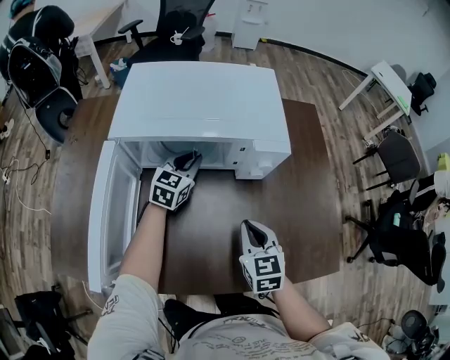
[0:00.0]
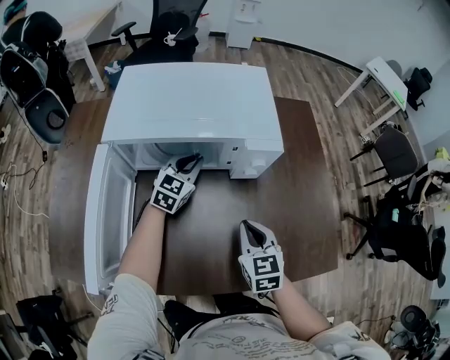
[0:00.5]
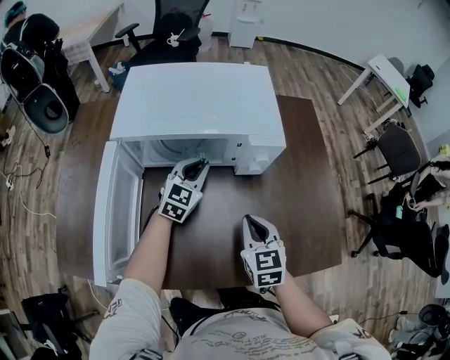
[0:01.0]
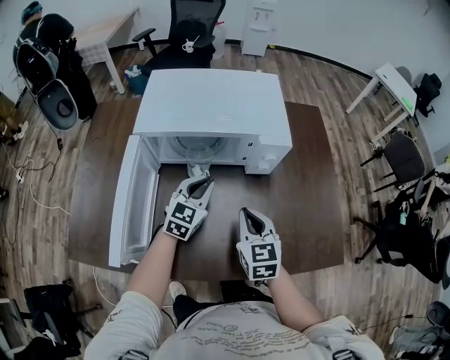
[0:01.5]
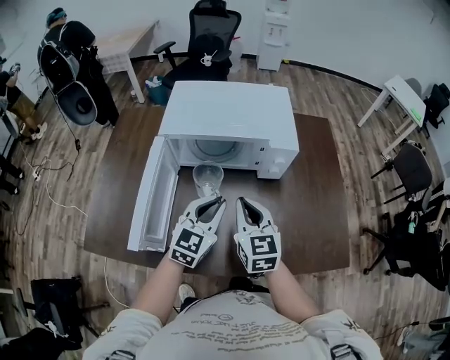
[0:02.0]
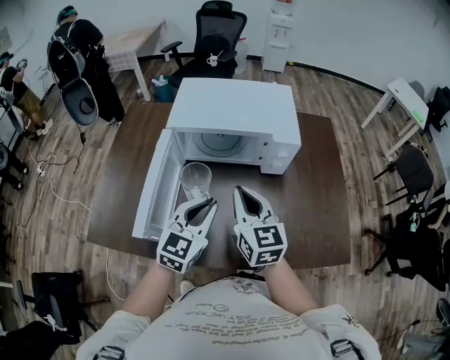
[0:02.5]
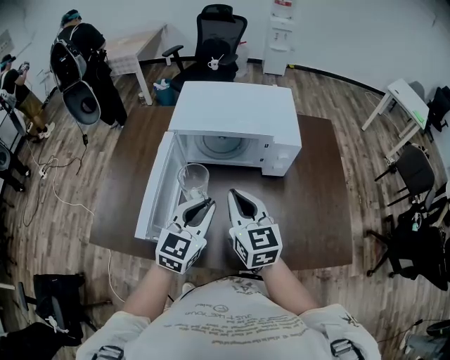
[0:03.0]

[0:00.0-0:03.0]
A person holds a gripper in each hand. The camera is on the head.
0:00.0 to 0:01.5: The left gripper heads backward, covering about 10 cm. Meanwhile the right gripper changes place by about 5 cm.
0:01.5 to 0:03.0: The left gripper moves backward and upward, approximately 20 cm; the right gripper shifts some 15 cm upward and to the left, and changes its angle by about 20 degrees.

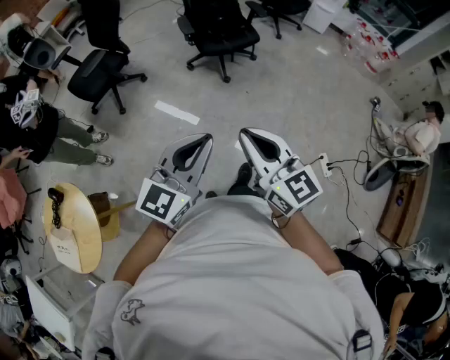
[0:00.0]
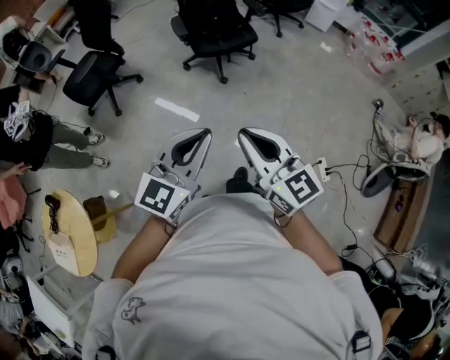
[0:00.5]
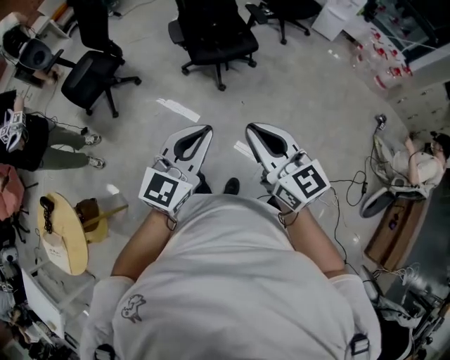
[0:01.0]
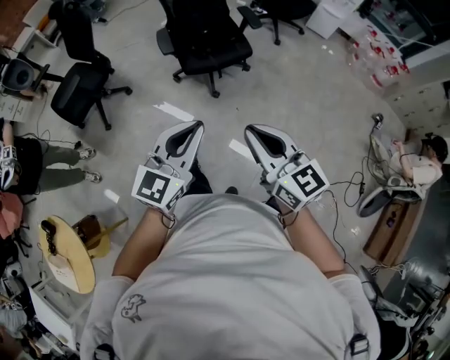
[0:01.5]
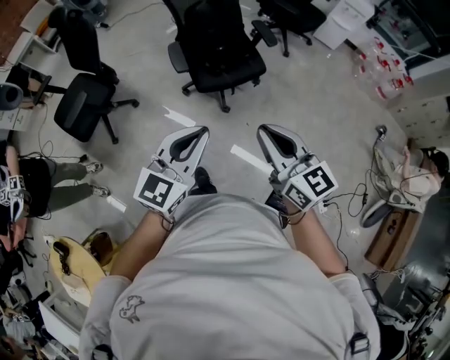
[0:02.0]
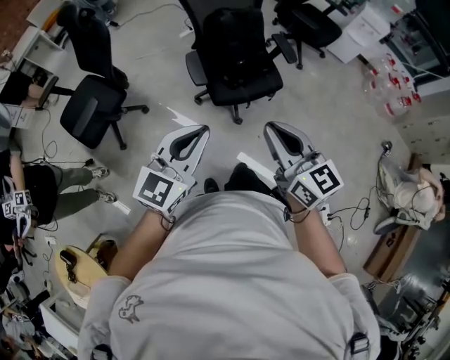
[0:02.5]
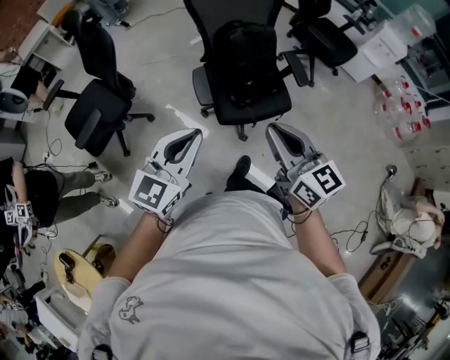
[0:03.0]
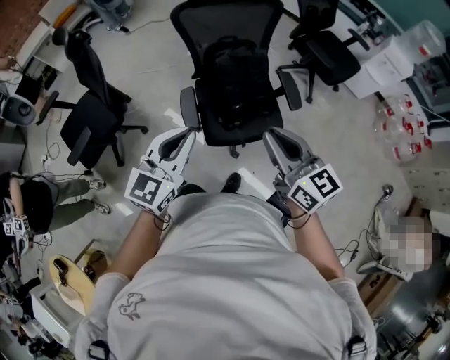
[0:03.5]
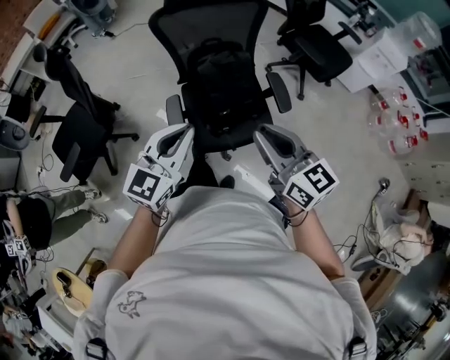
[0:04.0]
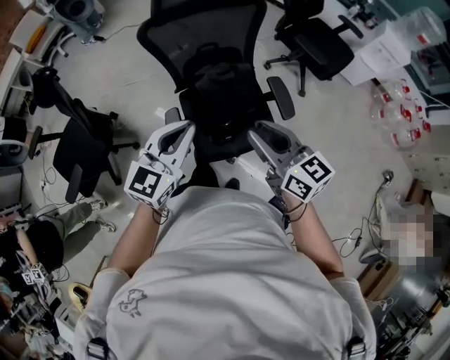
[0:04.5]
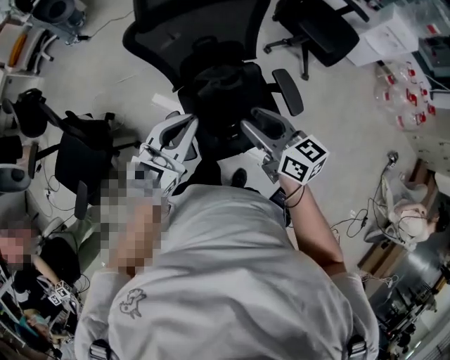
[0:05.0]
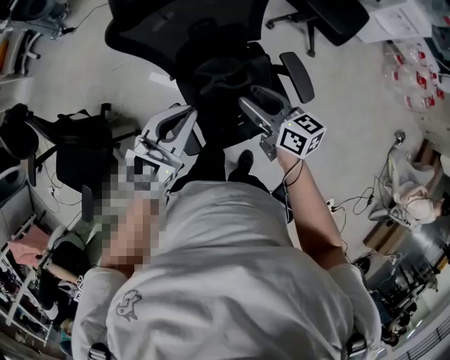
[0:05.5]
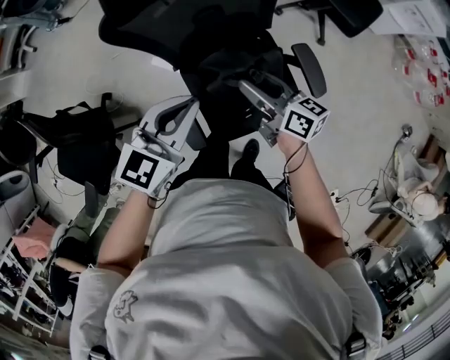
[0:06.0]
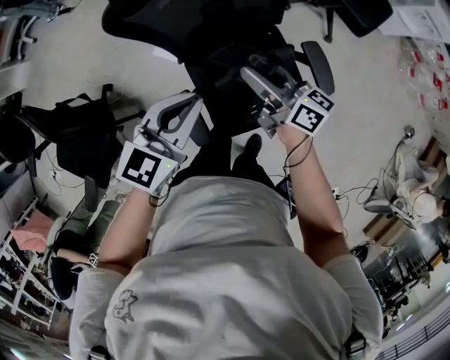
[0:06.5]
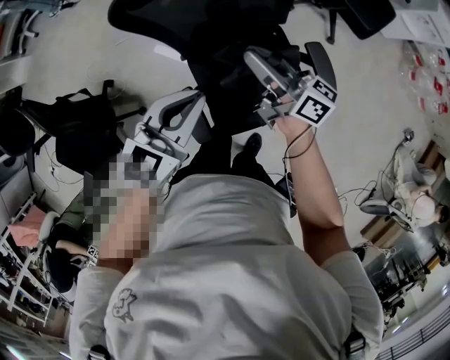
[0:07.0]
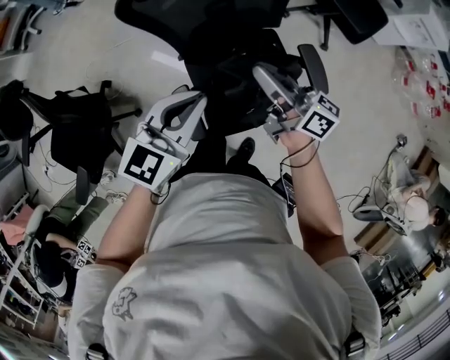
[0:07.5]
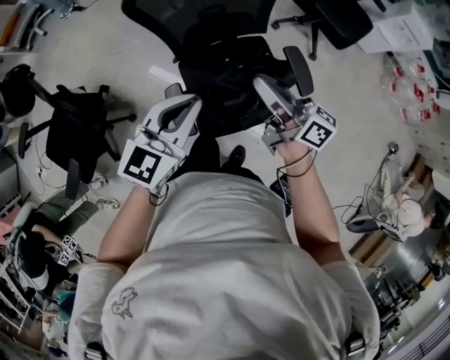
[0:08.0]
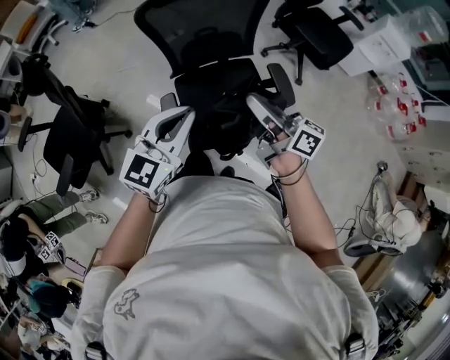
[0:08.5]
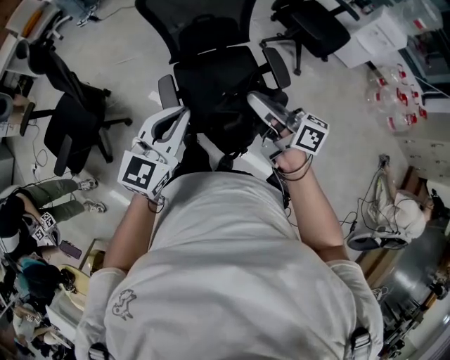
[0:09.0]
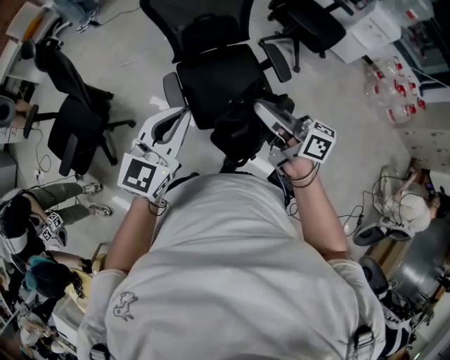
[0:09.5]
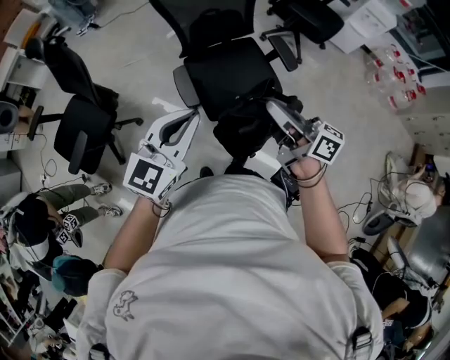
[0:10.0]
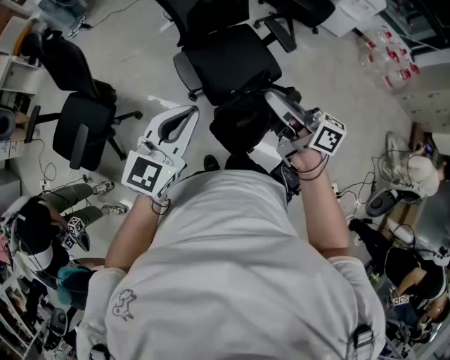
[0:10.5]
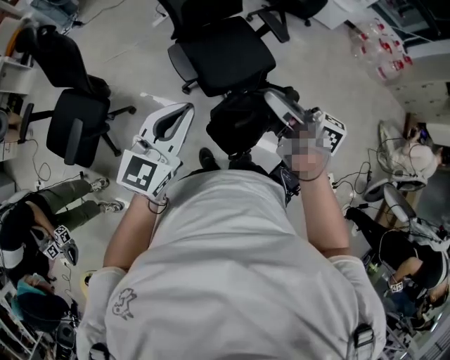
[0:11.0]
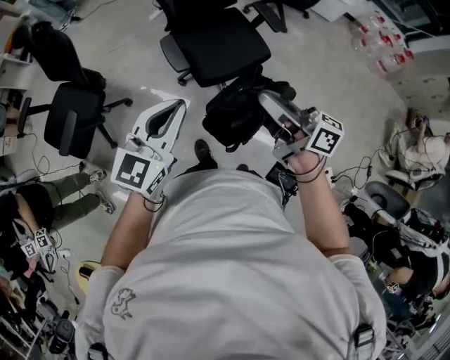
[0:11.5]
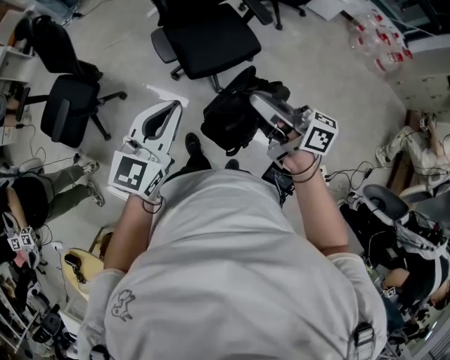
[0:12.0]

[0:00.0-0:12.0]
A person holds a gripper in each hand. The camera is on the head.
0:00.0 to 0:02.0: The two grippers travel together, forward, about 40 cm.
0:02.0 to 0:04.0: Both grippers are carried forward, roughly 40 cm.
0:04.0 to 0:06.0: Both grippers move forward and downward, roughly 35 cm. The right gripper changes its angle by approximately 30 degrees, and opens. Meanwhile the left gripper changes its angle by roughly 20 degrees.
0:06.0 to 0:08.0: The right gripper heads upward and backward, covering about 15 cm, turns by roughly 20 degrees, and closes; the left gripper moves backward, approximately 10 cm.
0:08.0 to 0:10.0: Both grippers travel together backward, roughly 30 cm.
0:10.0 to 0:12.0: The two grippers go approximately 20 cm backward.

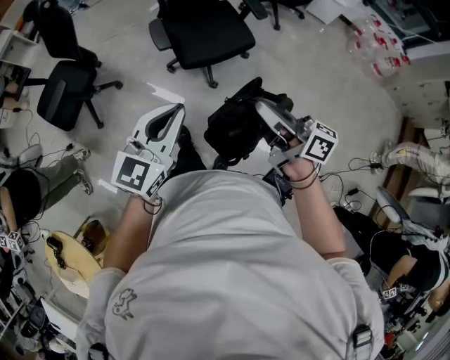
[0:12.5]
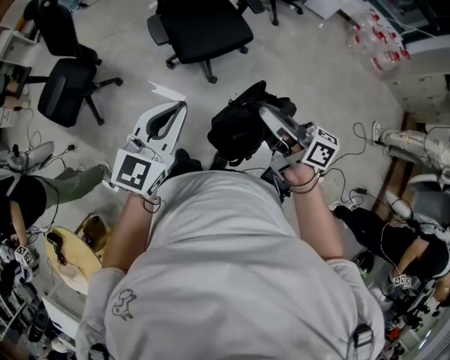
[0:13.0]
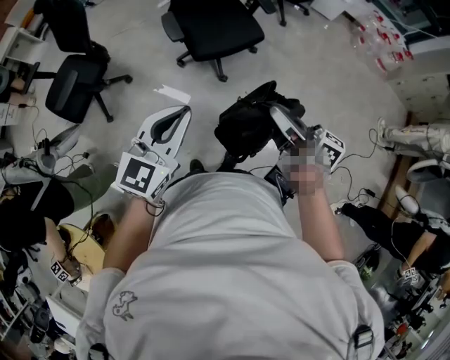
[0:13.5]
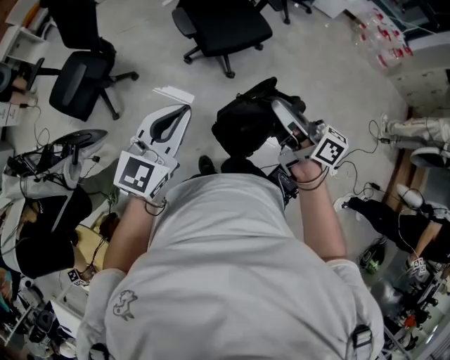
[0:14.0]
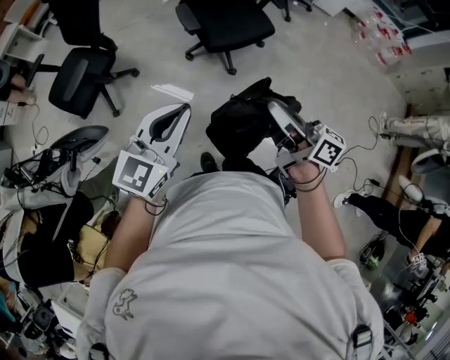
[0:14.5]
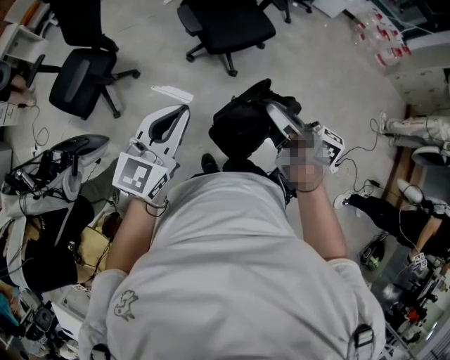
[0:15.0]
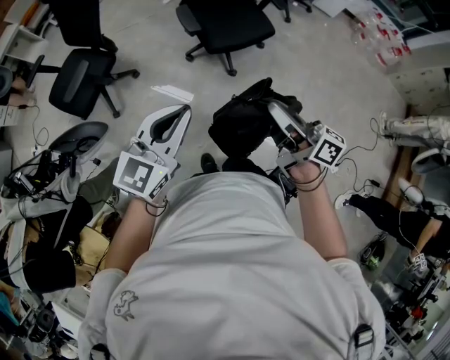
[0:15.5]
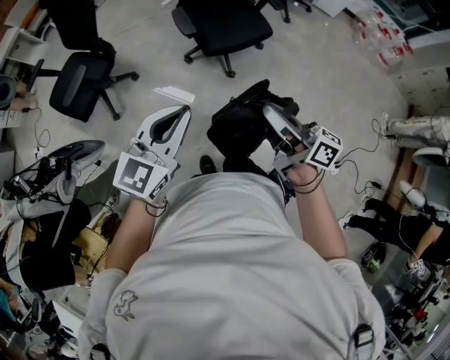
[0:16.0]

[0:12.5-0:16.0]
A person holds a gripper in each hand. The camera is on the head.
0:12.5 to 0:14.5: Both grippers travel together to the left and backward, approximately 20 cm.
0:14.5 to 0:16.0: There are only small adjustments of the grippers.

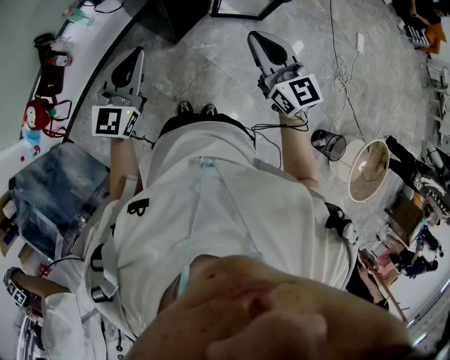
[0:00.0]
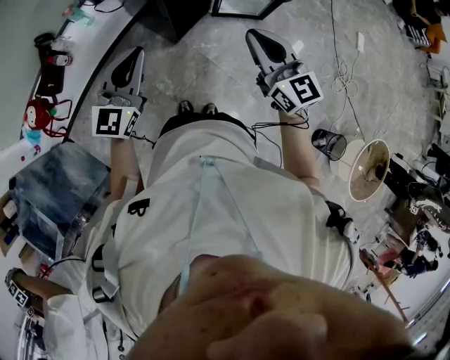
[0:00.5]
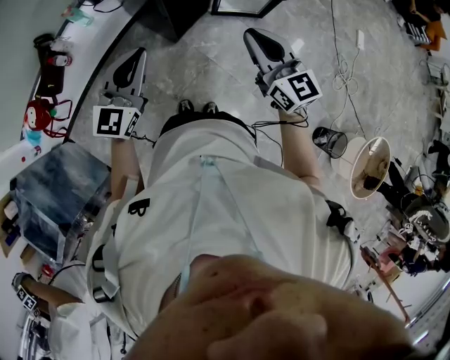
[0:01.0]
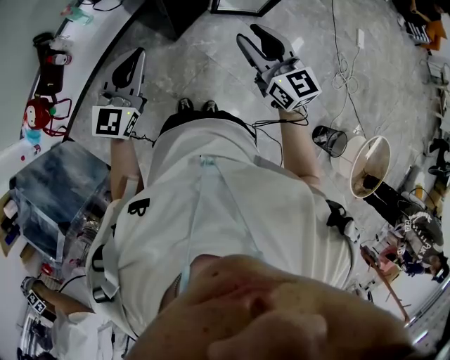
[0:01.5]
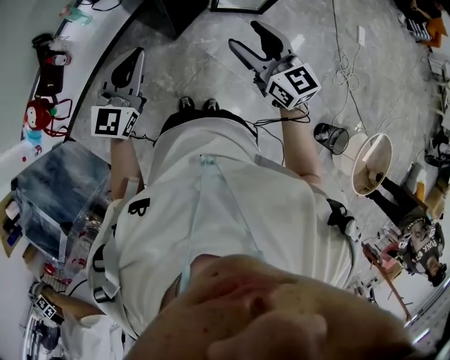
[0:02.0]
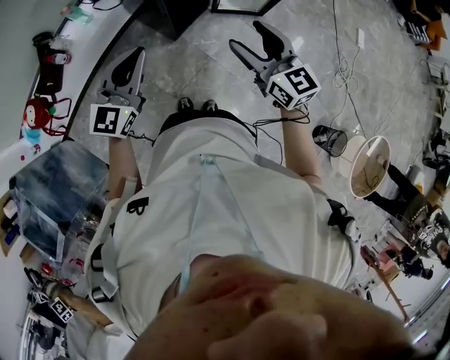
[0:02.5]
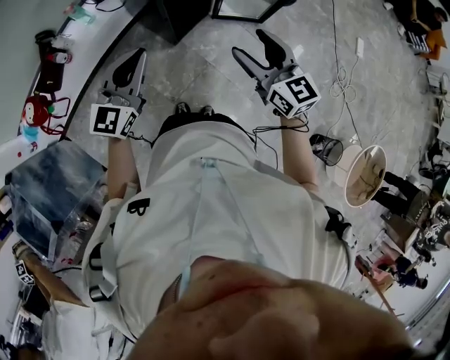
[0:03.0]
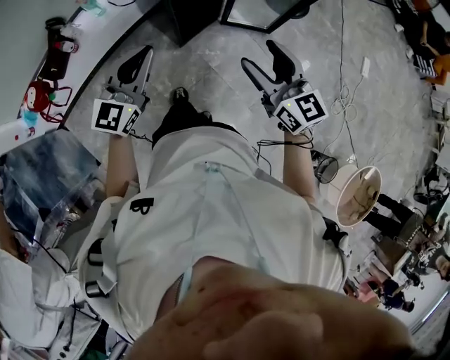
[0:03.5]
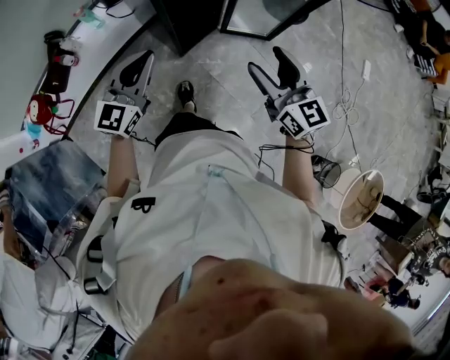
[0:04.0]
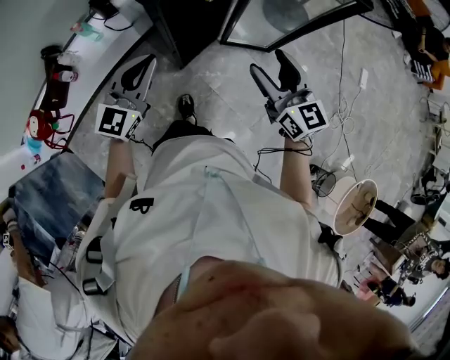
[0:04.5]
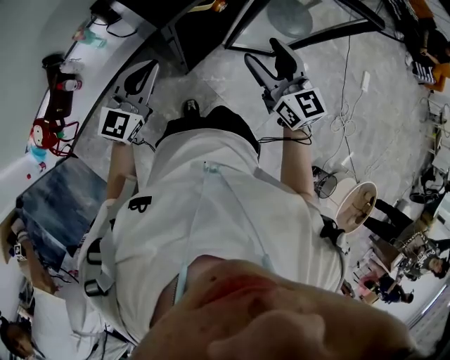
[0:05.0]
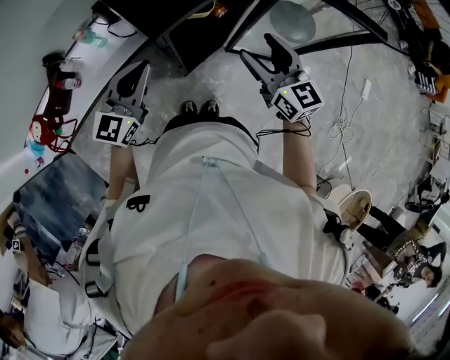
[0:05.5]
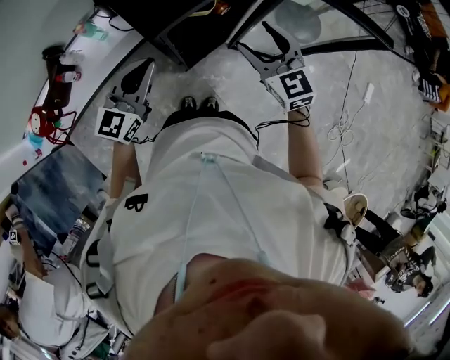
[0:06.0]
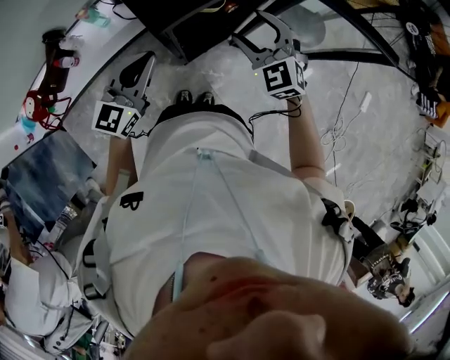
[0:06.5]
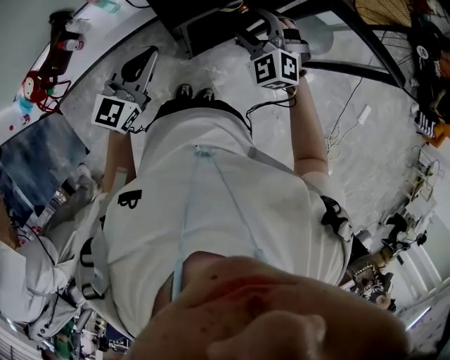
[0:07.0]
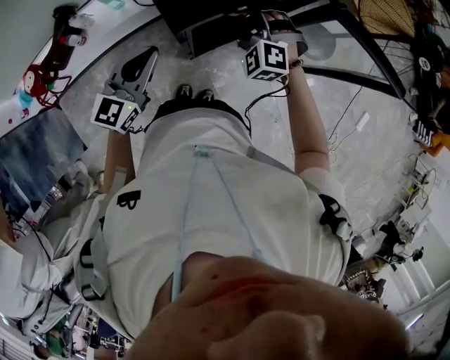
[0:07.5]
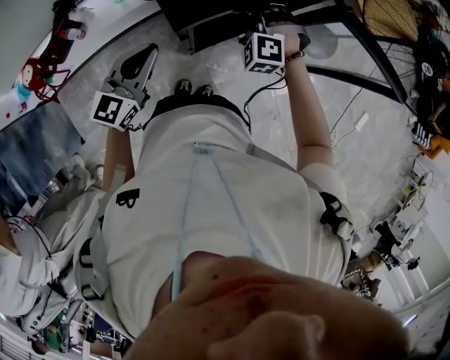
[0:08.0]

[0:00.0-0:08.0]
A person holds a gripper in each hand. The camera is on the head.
0:00.0 to 0:02.0: The right gripper opens its fingers.
0:02.0 to 0:04.0: The left gripper travels forward by about 5 cm. Meanwhile the right gripper goes approximately 5 cm to the right.
0:04.0 to 0:06.0: The grippers both shift forward by roughly 25 cm. The right gripper turns by about 20 degrees.
0:06.0 to 0:08.0: The right gripper shifts roughly 15 cm downward, forward and to the left, twists approximately 60 degrees counterclockwise, seen from behind, and closes.
